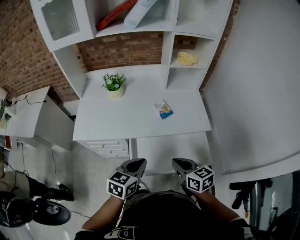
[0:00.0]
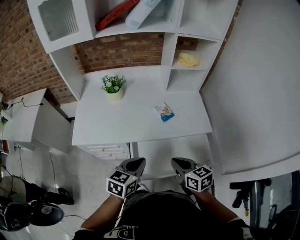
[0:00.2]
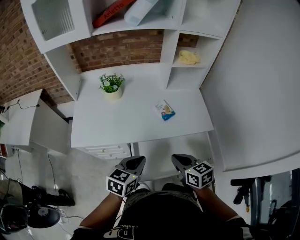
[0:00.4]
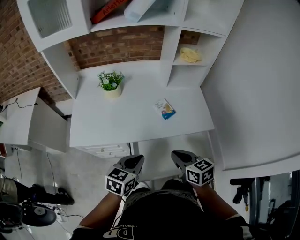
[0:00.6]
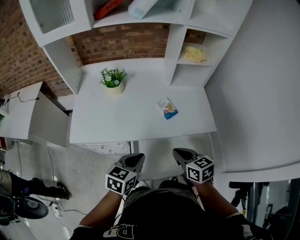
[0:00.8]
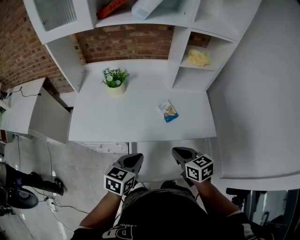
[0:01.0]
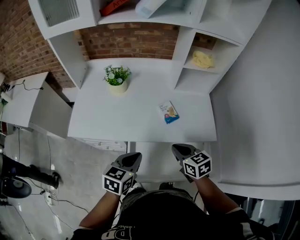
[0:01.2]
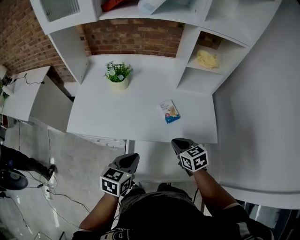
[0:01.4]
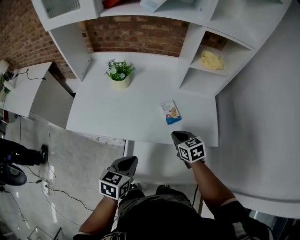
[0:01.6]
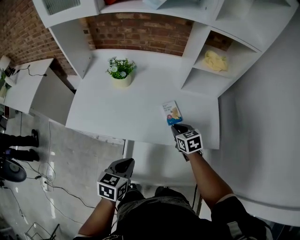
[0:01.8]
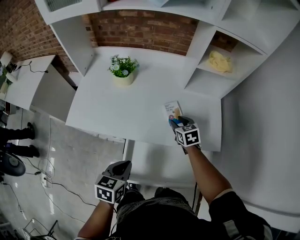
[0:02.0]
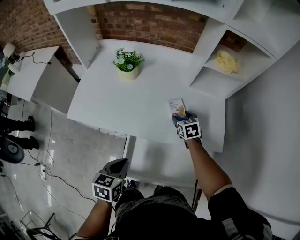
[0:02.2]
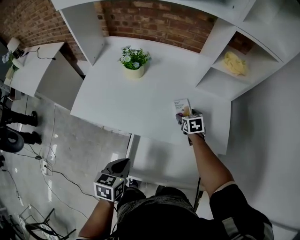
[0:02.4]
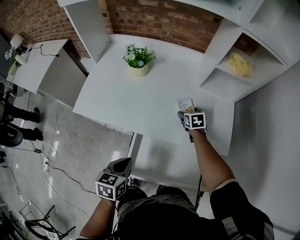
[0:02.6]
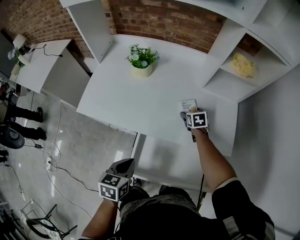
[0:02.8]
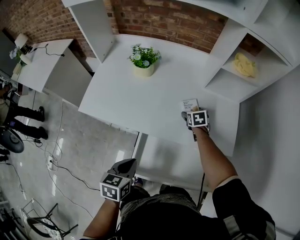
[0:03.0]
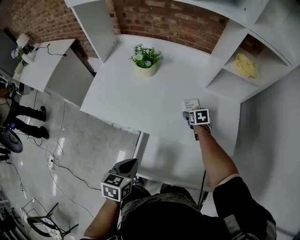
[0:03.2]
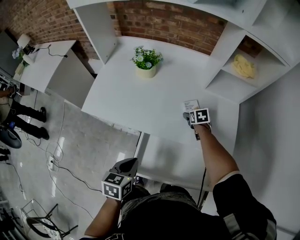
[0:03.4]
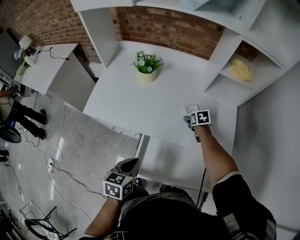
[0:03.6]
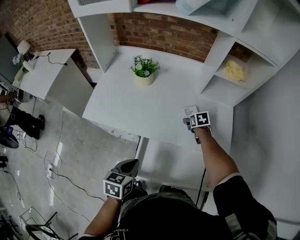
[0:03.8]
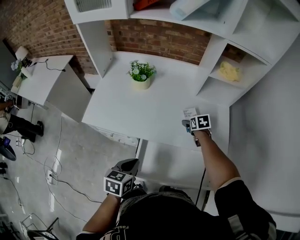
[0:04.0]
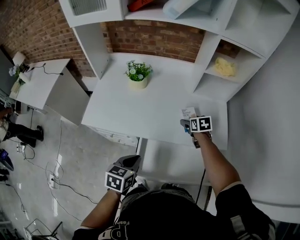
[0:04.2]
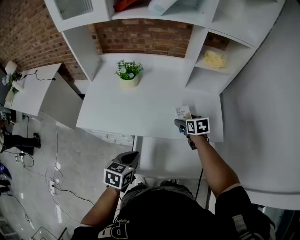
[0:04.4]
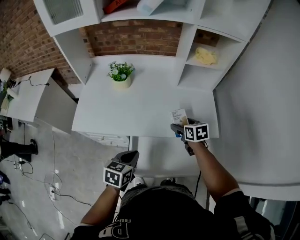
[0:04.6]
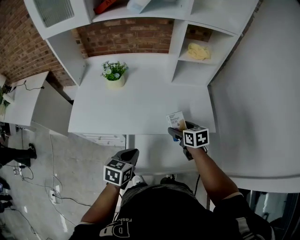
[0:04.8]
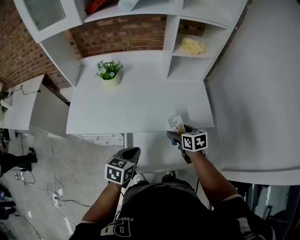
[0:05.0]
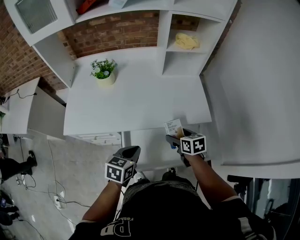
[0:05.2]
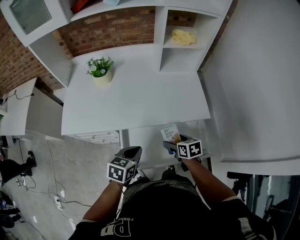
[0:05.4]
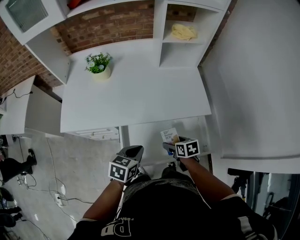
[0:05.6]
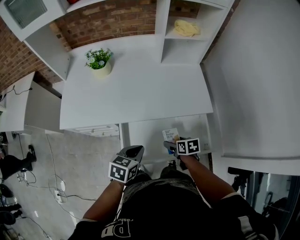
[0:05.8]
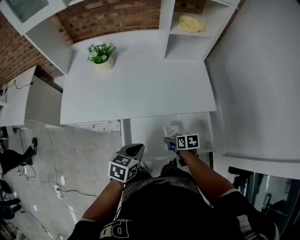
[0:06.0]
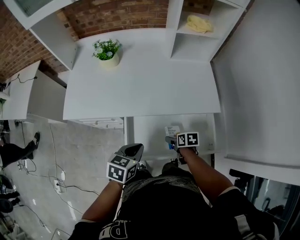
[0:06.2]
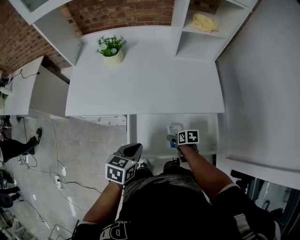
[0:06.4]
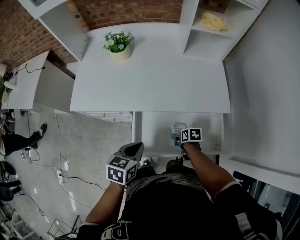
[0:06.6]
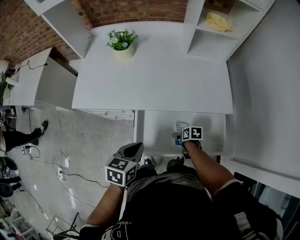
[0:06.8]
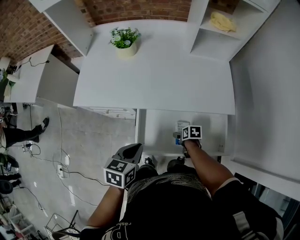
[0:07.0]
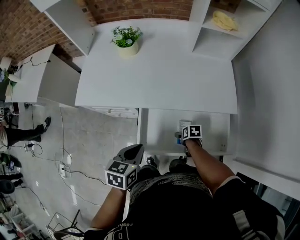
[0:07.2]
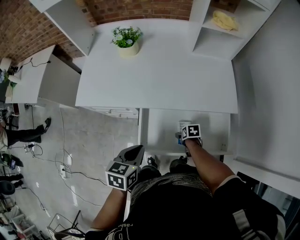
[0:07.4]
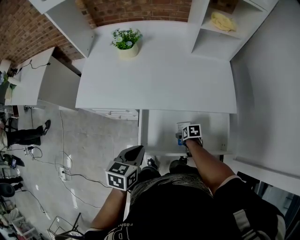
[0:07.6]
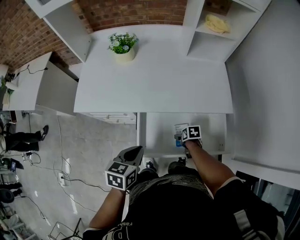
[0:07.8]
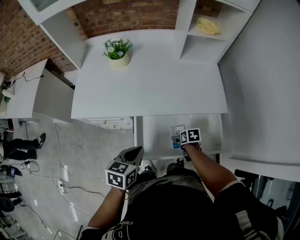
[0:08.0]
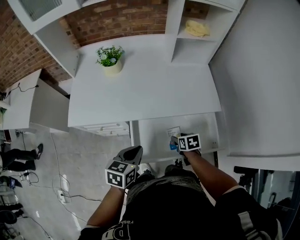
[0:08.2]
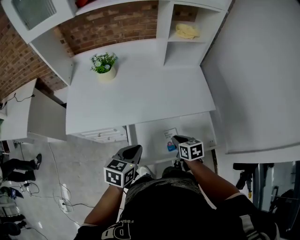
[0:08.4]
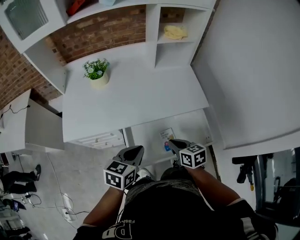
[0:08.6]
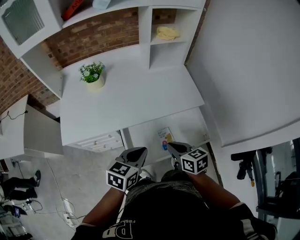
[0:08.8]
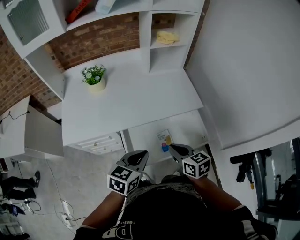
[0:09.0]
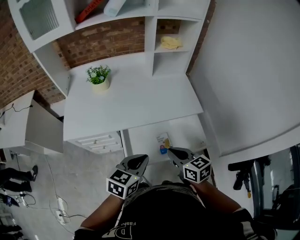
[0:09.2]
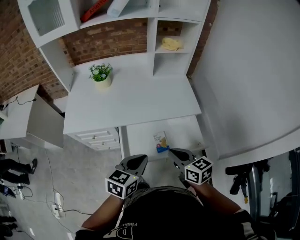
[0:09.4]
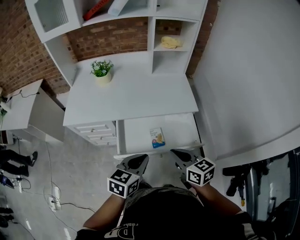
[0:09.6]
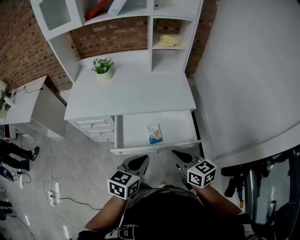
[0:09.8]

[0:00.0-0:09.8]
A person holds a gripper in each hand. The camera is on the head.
0.0 to 1.4 s: The left gripper travels forward by about 10 cm; the right gripper heads forward, covering about 20 cm.
1.4 to 2.8 s: The left gripper goes some 5 cm downward, and rotates some 20 degrees. Meanwhile the right gripper shifts roughly 25 cm forward and downward, and opens.
2.8 to 4.2 s: The right gripper shifts roughly 10 cm upward and backward.
4.2 to 5.6 s: The right gripper moves backward, approximately 25 cm, while the left gripper heads to the right, covering roughly 10 cm.
5.6 to 7.0 s: The left gripper heads to the left, covering about 10 cm. Meanwhile the right gripper travels downward by roughly 15 cm, and rotates roughly 20 degrees.
7.0 to 8.4 s: The right gripper is displaced upward by about 20 cm, turns by roughly 30 degrees, and closes.
8.4 to 9.8 s: The left gripper heads to the right, backward and upward, covering about 25 cm. The right gripper heads backward, upward and to the right, covering some 30 cm, and rotates some 30 degrees.

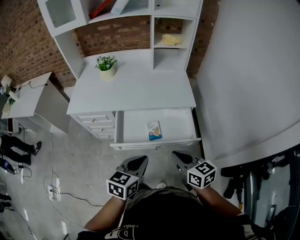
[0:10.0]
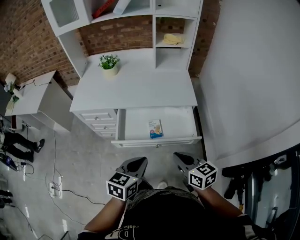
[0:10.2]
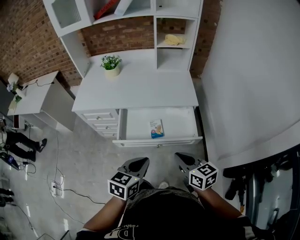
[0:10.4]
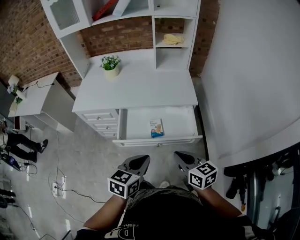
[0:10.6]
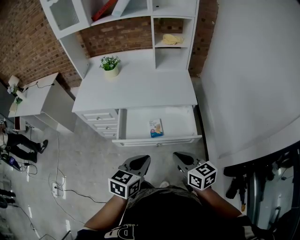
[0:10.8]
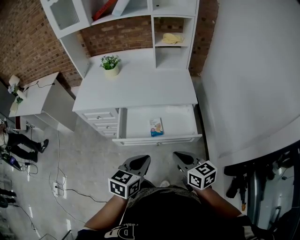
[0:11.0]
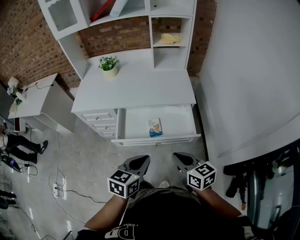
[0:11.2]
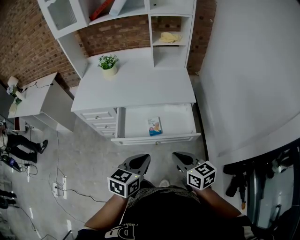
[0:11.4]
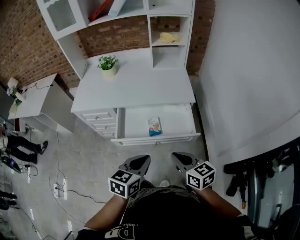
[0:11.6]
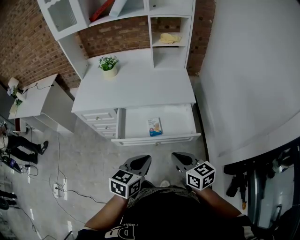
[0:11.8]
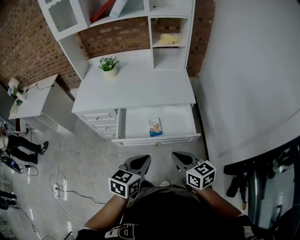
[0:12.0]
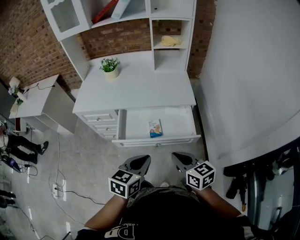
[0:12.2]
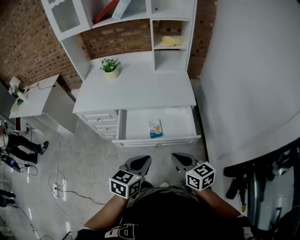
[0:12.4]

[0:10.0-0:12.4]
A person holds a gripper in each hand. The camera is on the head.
10.0 to 11.2 s: The grippers make only small movements.
11.2 to 12.4 s: Neither gripper changes place.

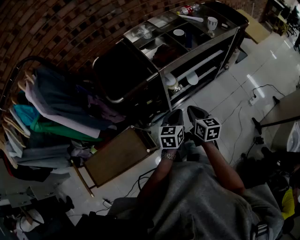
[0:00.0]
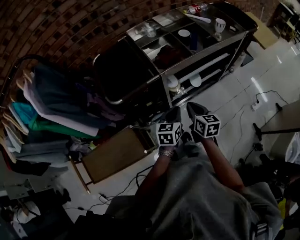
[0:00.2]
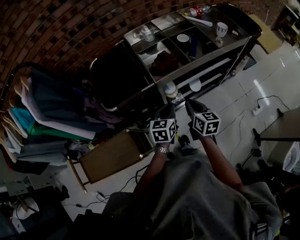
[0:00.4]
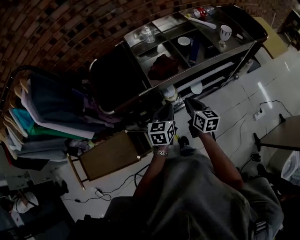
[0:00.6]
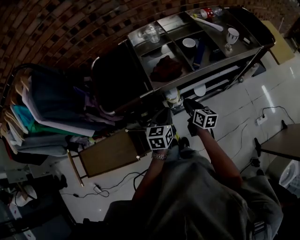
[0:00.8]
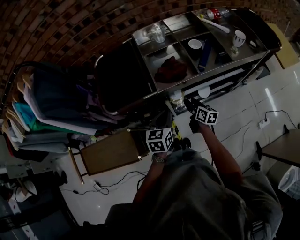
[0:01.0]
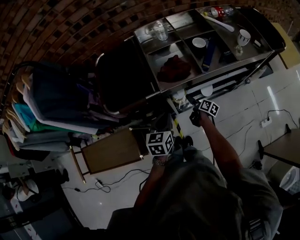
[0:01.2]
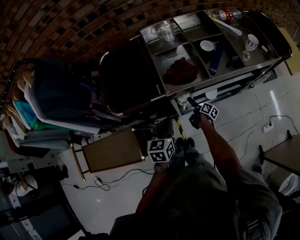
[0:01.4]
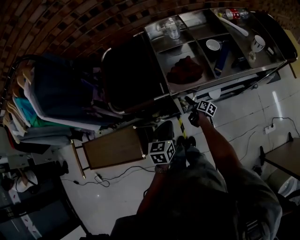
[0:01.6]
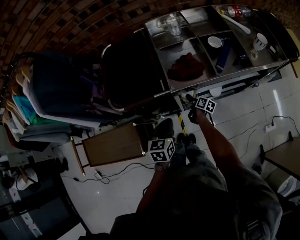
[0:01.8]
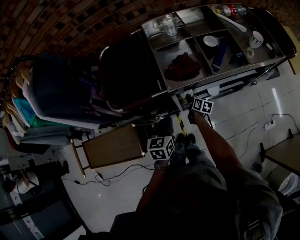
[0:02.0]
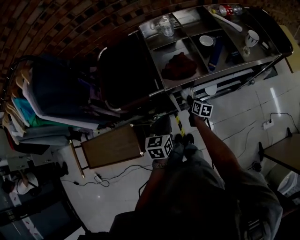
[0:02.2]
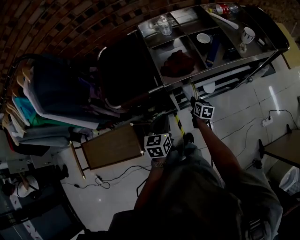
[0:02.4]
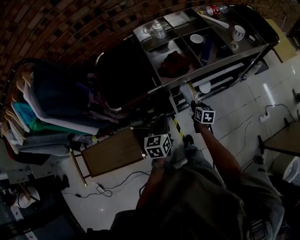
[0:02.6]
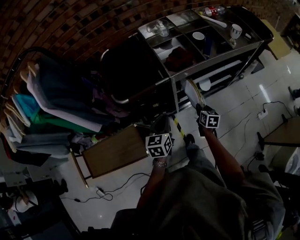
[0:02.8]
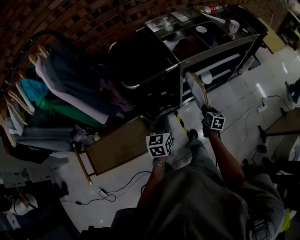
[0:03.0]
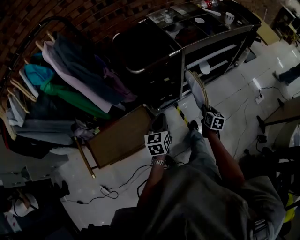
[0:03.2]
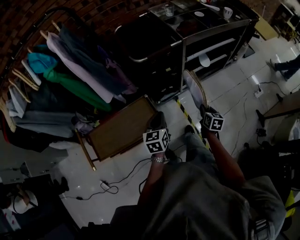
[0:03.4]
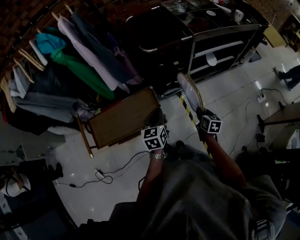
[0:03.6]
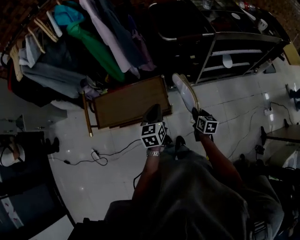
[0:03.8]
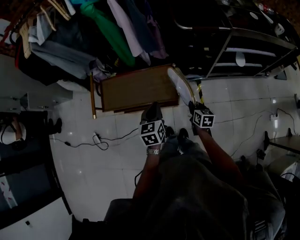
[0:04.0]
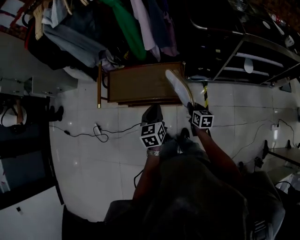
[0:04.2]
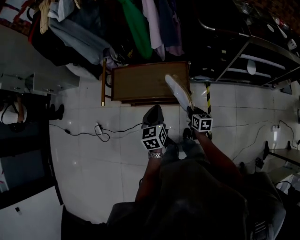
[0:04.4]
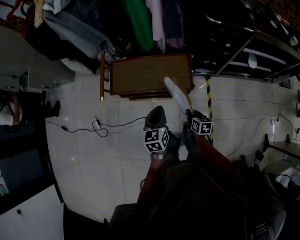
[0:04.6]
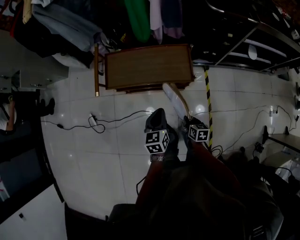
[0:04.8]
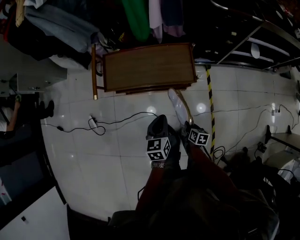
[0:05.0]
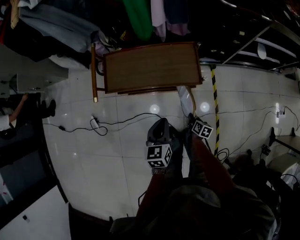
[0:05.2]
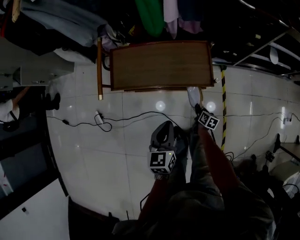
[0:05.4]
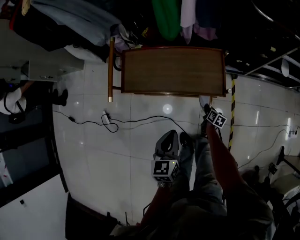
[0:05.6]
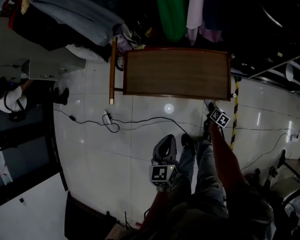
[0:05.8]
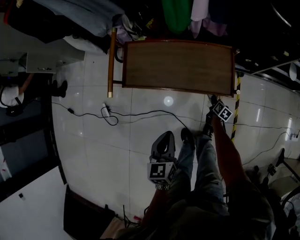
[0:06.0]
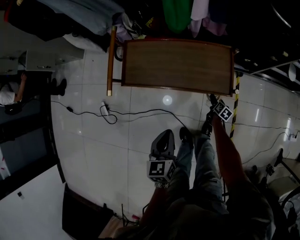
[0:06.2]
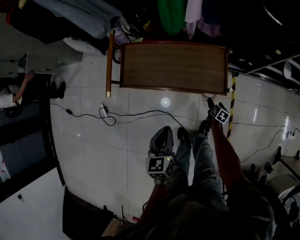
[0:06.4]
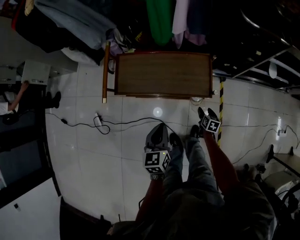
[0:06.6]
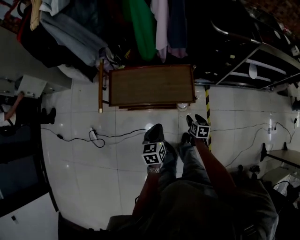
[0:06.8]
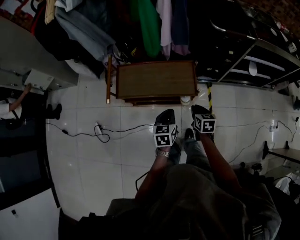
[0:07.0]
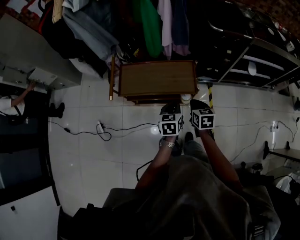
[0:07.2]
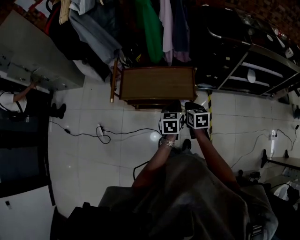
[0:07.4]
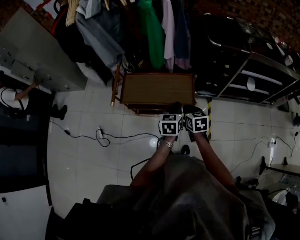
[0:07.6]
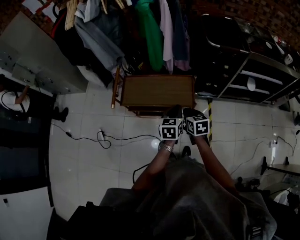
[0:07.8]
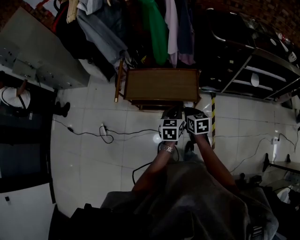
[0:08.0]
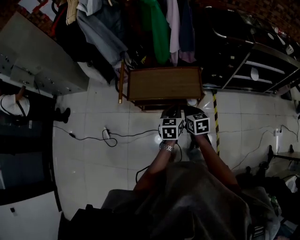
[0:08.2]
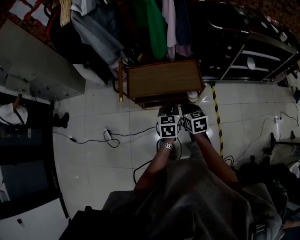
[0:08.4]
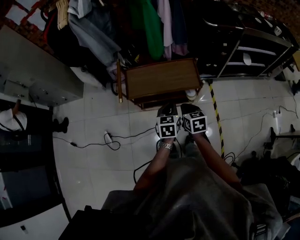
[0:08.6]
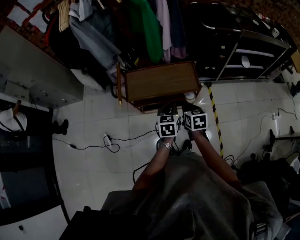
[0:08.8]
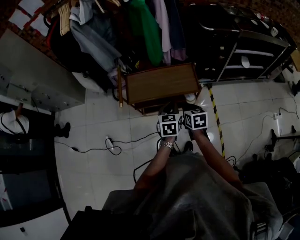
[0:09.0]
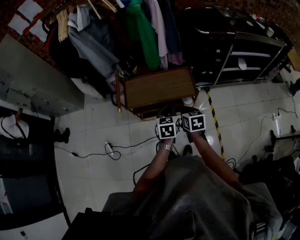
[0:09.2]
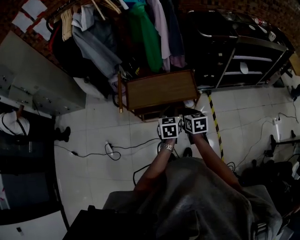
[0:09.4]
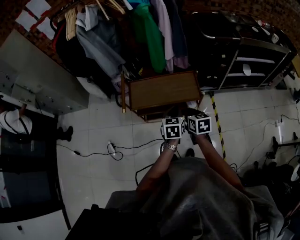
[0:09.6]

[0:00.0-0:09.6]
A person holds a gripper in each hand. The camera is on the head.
0.0 to 1.6 s: The right gripper heads downward and forward, covering approximately 40 cm, rotates approximately 40 degrees, and opens up, while the left gripper moves forward, approximately 15 cm, and changes its angle by roughly 20 degrees.
1.6 to 3.2 s: The right gripper shifts about 35 cm backward and upward, swivels some 40 degrees, and closes up. The left gripper shifts approximately 25 cm backward and to the left.
3.2 to 4.8 s: The left gripper shifts by roughly 40 cm, and swivels about 30 degrees. The right gripper moves approximately 50 cm, and rotates approximately 40 degrees.
4.8 to 6.4 s: The left gripper goes some 10 cm to the left and downward. Meanwhile the right gripper goes about 30 cm downward and forward, turns by approximately 20 degrees, and opens its fingers.
6.4 to 8.0 s: The left gripper travels upward and to the right by approximately 20 cm, while the right gripper travels upward by about 40 cm, swivels some 40 degrees, and closes its fingers.
8.0 to 9.6 s: Both grippers move to the left, about 5 cm.

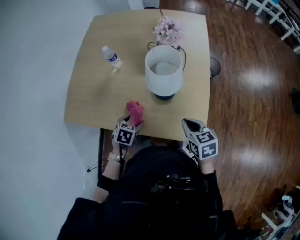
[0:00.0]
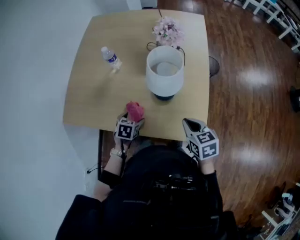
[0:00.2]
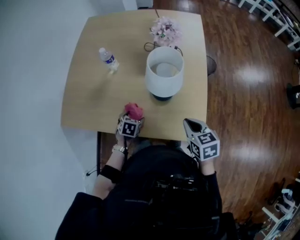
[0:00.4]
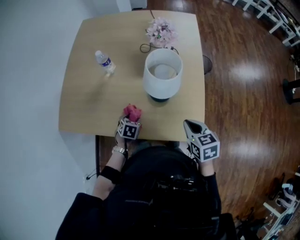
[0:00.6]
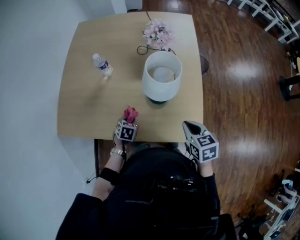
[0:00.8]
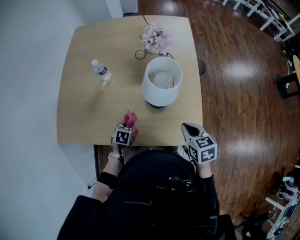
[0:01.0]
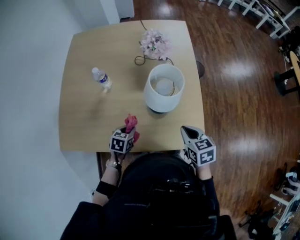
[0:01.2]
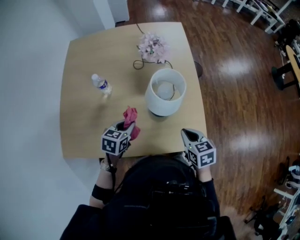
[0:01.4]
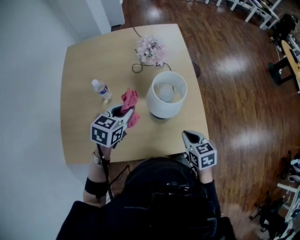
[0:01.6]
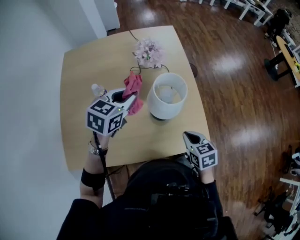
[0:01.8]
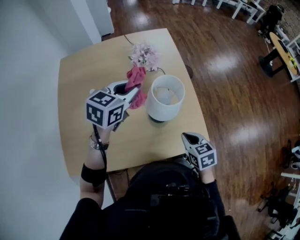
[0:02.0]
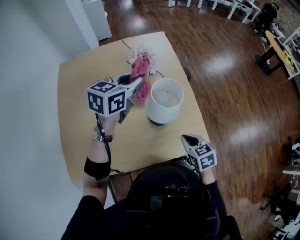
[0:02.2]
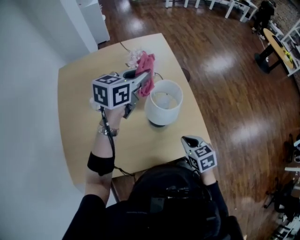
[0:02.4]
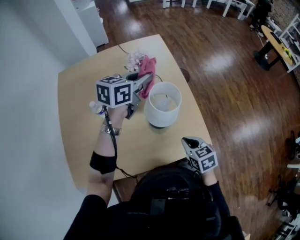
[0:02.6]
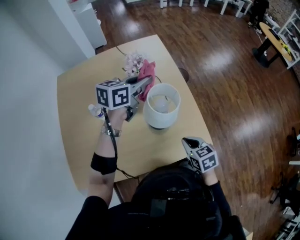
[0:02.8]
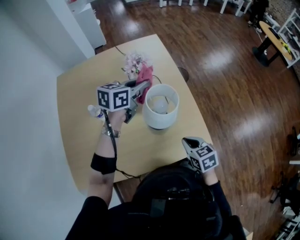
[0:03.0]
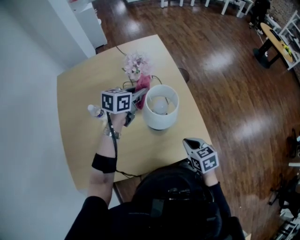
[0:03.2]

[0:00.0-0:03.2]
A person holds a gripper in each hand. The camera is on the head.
0.0 to 1.6 s: The left gripper travels upward and forward by about 25 cm, turns by roughly 30 degrees, and closes its fingers. The right gripper changes place by approximately 5 cm.
1.6 to 3.2 s: The left gripper heads forward and to the right, covering about 15 cm, and changes its angle by roughly 20 degrees.
